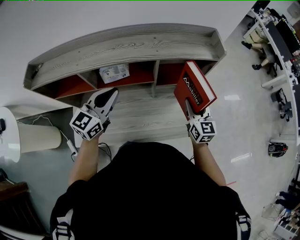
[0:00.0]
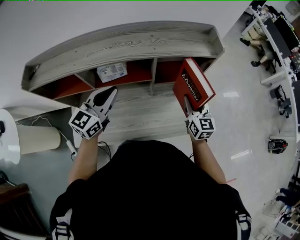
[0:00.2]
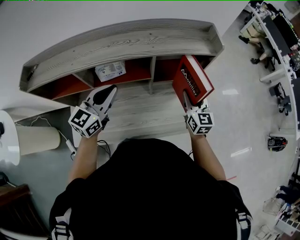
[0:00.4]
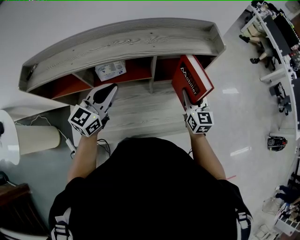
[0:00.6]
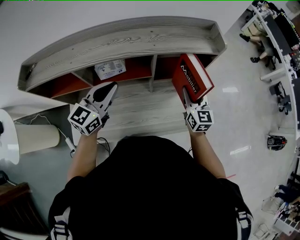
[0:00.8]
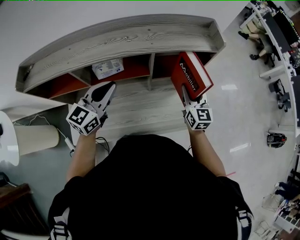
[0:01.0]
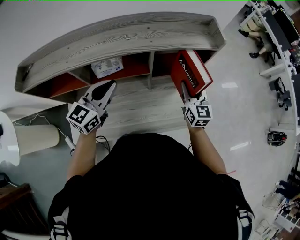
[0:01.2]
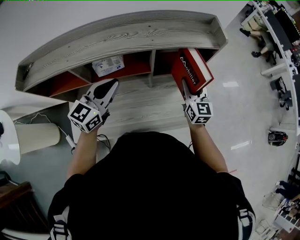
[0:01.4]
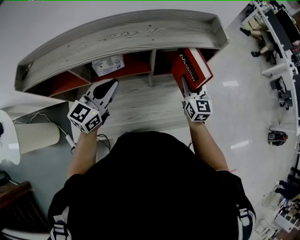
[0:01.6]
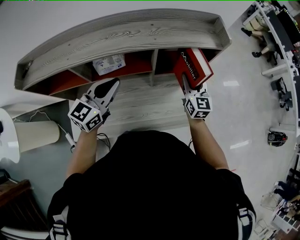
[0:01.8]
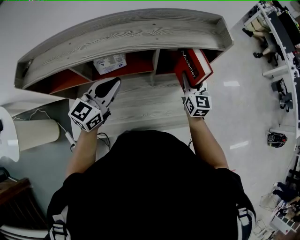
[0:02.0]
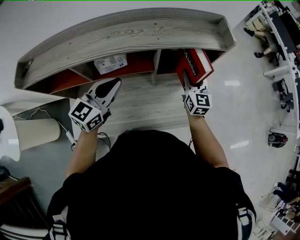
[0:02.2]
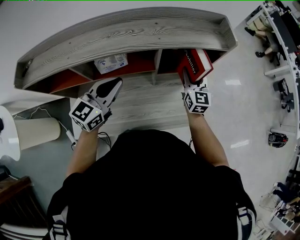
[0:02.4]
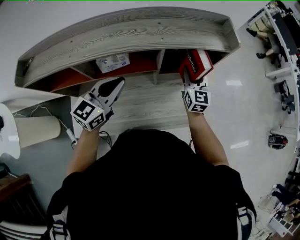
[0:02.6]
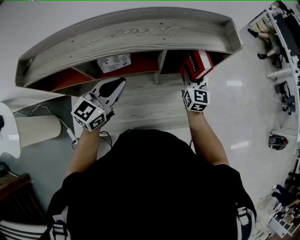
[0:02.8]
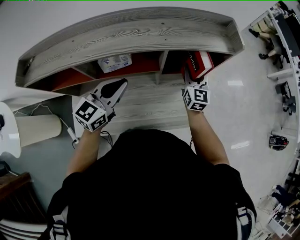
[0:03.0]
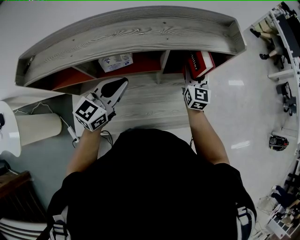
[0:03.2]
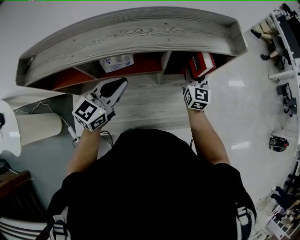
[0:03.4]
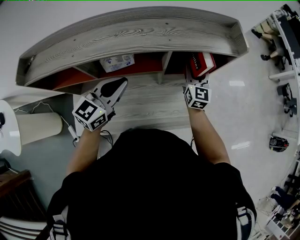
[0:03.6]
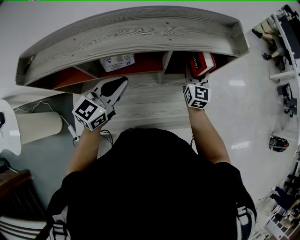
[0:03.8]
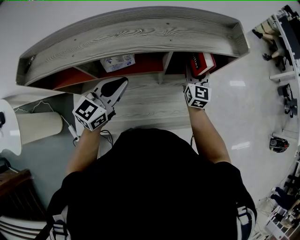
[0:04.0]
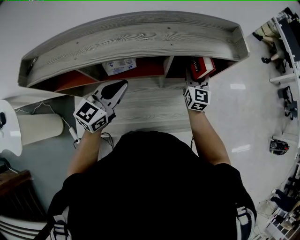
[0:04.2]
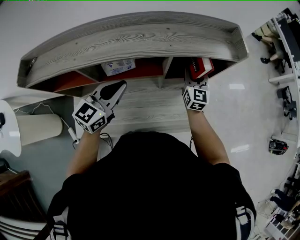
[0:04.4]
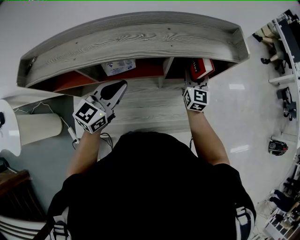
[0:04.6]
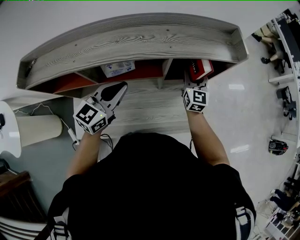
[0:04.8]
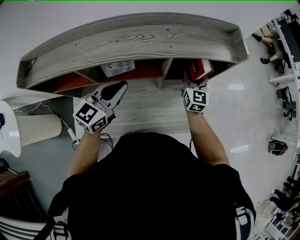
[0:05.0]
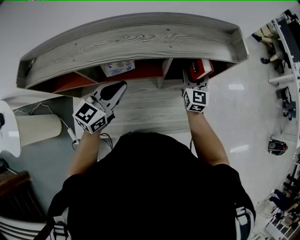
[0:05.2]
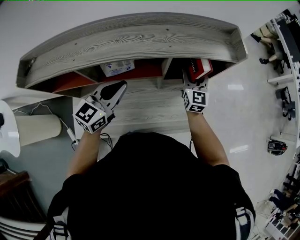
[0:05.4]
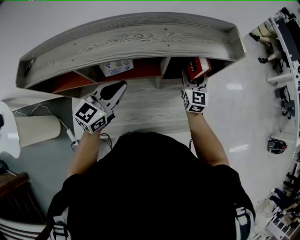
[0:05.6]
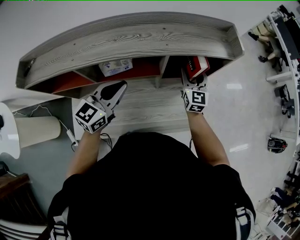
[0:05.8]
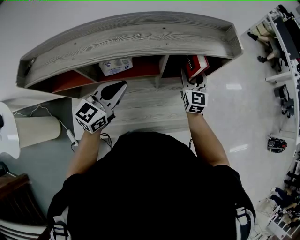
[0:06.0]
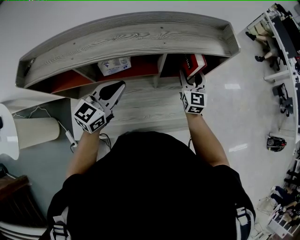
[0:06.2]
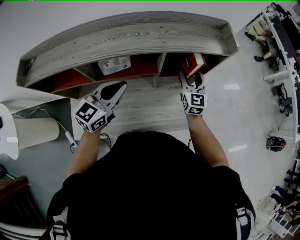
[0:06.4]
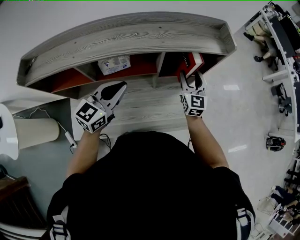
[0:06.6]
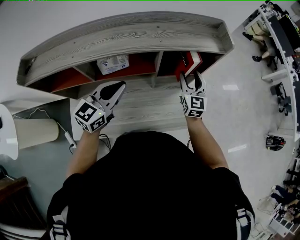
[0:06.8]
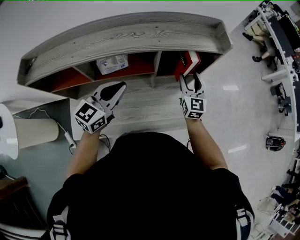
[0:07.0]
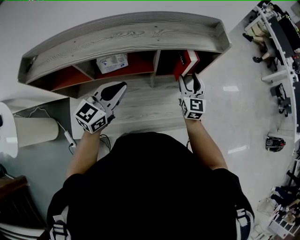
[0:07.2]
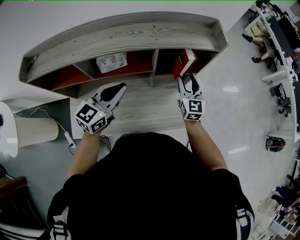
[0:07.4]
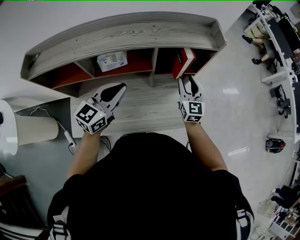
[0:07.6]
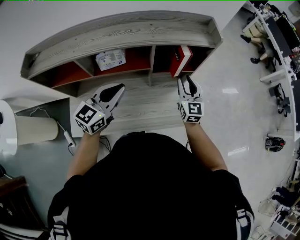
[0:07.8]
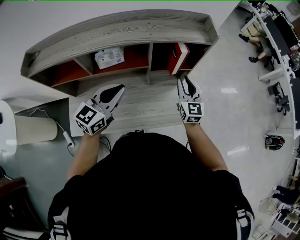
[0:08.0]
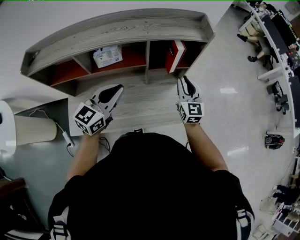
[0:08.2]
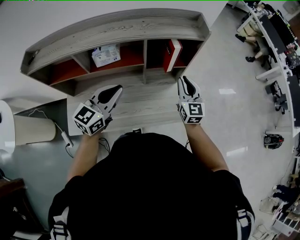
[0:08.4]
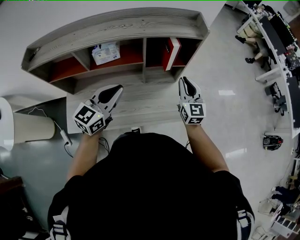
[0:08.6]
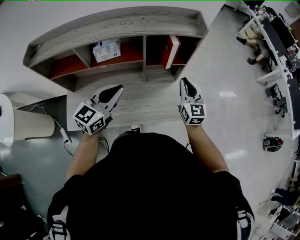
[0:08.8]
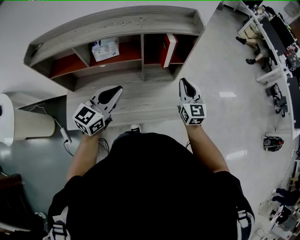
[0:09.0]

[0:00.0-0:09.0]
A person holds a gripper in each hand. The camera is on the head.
0:00.0 to 0:01.6: The right gripper heads forward, covering some 5 cm.
0:01.6 to 0:03.0: The right gripper goes roughly 5 cm forward.
0:03.0 to 0:06.0: The grippers move only a little.
0:06.0 to 0:07.6: The right gripper travels backward by approximately 5 cm. Meanwhile the left gripper moves about 5 cm.
0:07.6 to 0:09.0: The grippers both shift backward and to the right by about 10 cm. The right gripper closes up.

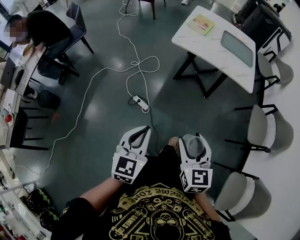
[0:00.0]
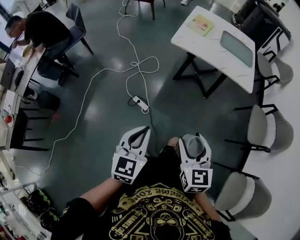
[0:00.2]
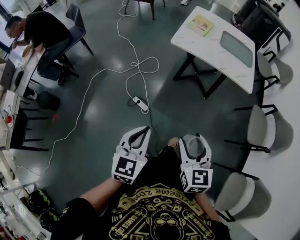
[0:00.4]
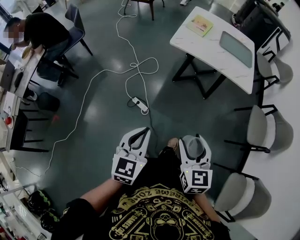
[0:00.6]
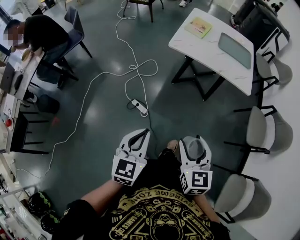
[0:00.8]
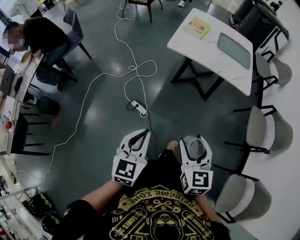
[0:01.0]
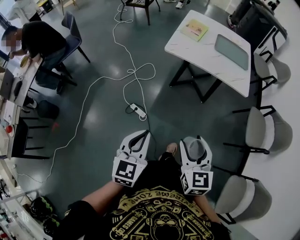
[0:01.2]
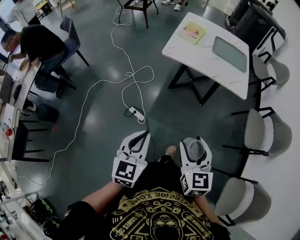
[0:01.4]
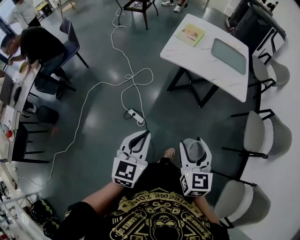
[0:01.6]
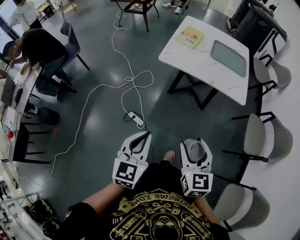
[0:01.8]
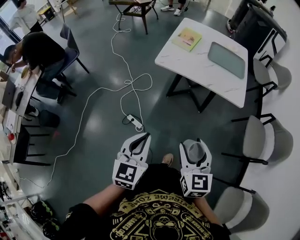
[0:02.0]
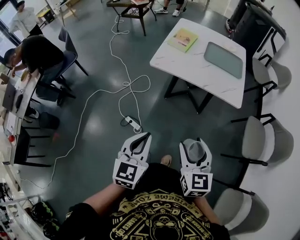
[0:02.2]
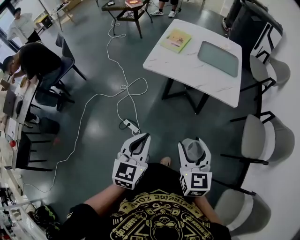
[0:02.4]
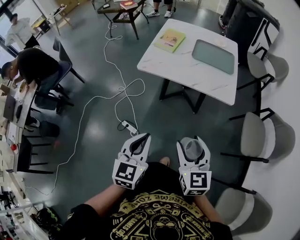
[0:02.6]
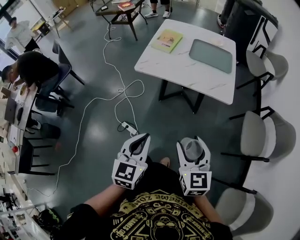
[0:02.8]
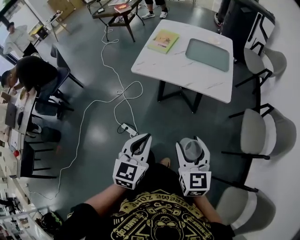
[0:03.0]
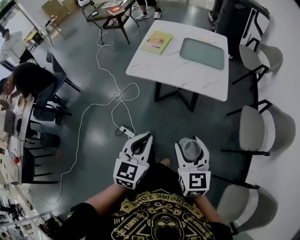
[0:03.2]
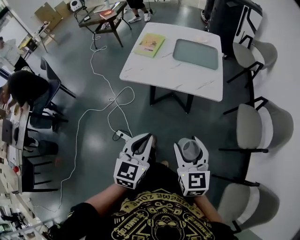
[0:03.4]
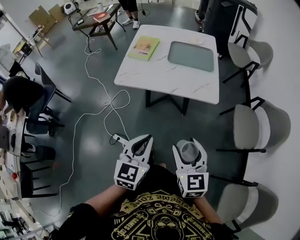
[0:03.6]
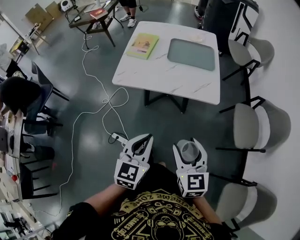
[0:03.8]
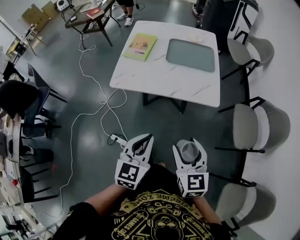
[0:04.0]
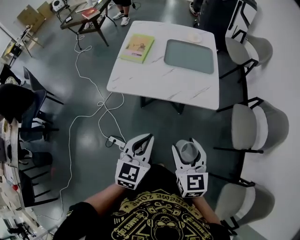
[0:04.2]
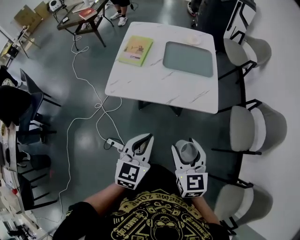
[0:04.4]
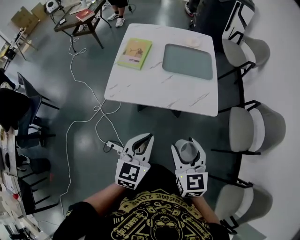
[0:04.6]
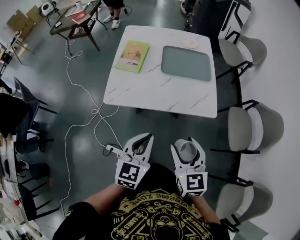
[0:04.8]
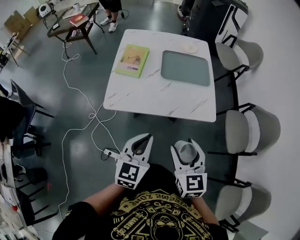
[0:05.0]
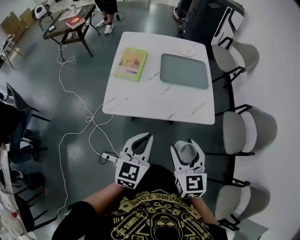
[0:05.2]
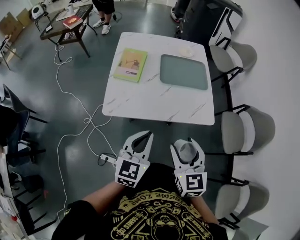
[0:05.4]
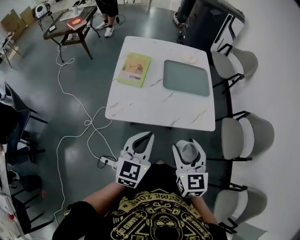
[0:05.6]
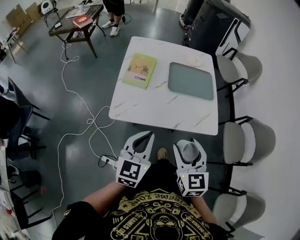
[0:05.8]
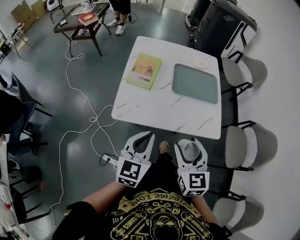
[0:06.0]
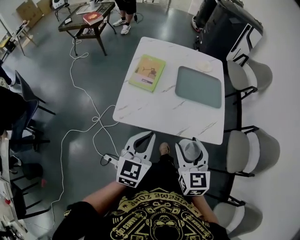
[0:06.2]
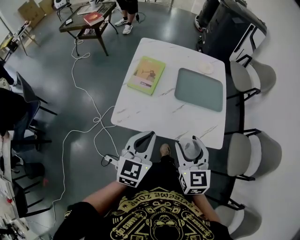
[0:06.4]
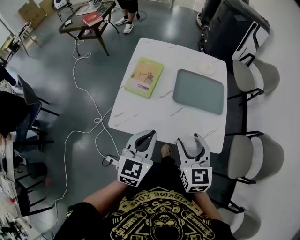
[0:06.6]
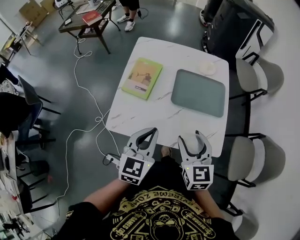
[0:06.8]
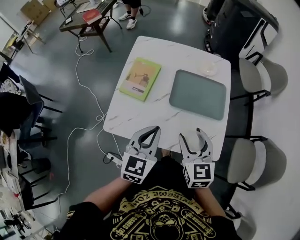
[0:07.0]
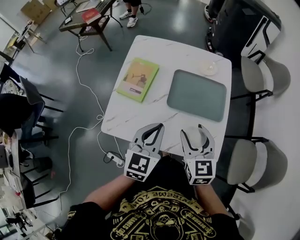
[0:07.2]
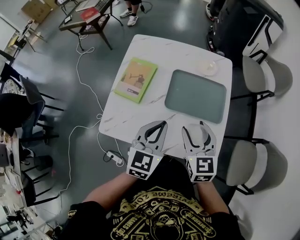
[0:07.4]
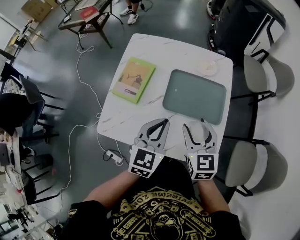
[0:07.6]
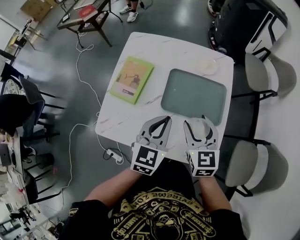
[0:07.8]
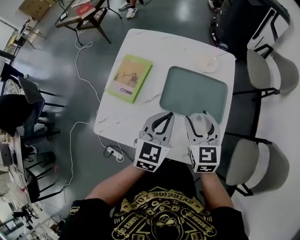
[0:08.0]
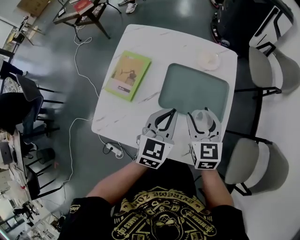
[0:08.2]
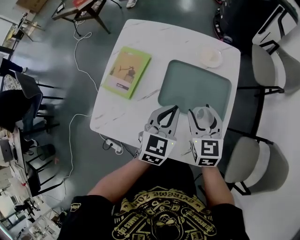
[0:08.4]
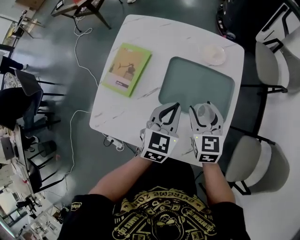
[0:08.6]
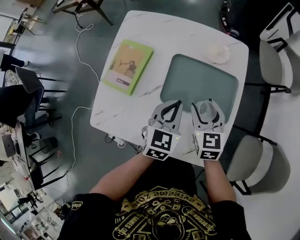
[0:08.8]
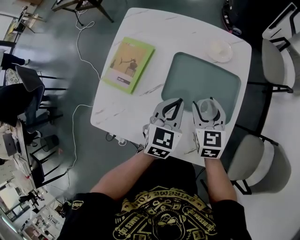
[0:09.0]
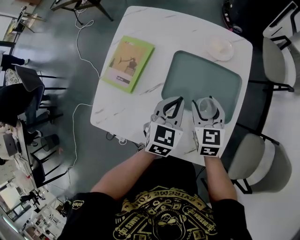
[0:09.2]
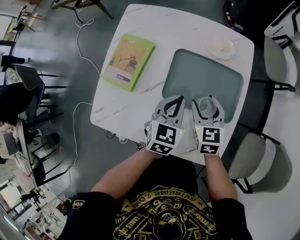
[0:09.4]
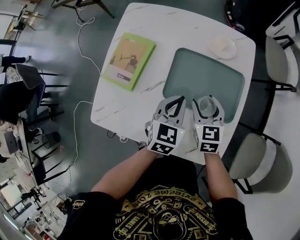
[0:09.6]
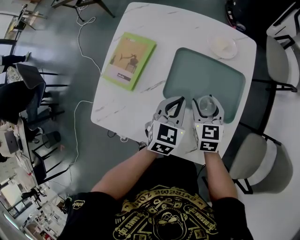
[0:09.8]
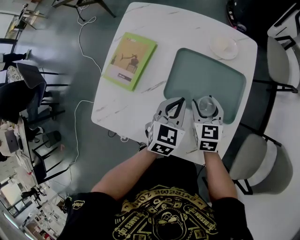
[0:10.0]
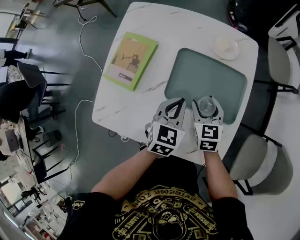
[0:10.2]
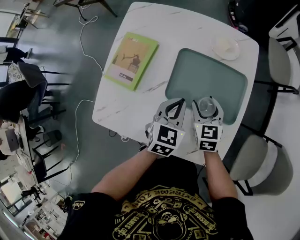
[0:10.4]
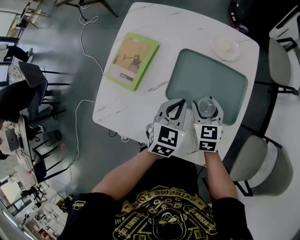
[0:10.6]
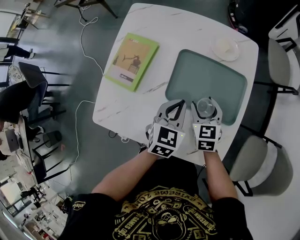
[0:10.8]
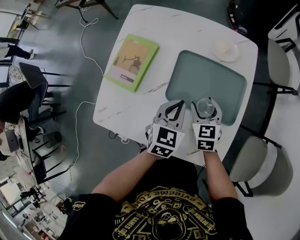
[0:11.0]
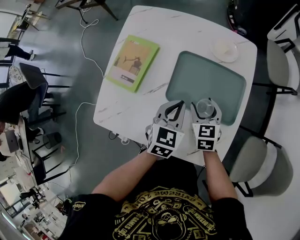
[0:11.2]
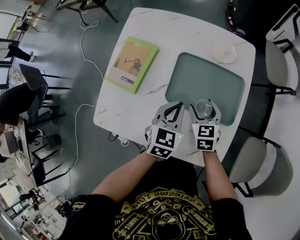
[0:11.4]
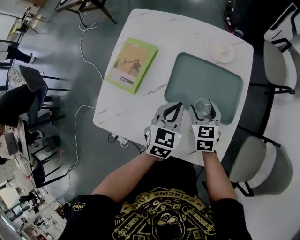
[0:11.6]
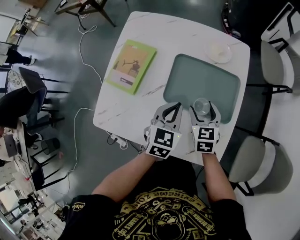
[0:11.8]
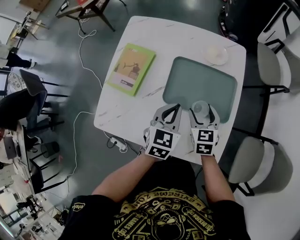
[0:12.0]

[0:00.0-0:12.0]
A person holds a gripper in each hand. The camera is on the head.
0:00.0 to 0:01.6: The grippers both shift forward by some 5 cm.
0:01.6 to 0:03.0: The two grippers go about 20 cm to the right and forward.
0:03.0 to 0:04.4: Both grippers move forward, some 15 cm.
0:04.4 to 0:06.0: Both grippers move forward and to the left, approximately 15 cm.
0:06.0 to 0:07.6: Both grippers travel together forward and to the right, about 25 cm.
0:07.6 to 0:09.0: The two grippers go approximately 15 cm downward and forward.
0:09.0 to 0:10.4: The right gripper is displaced downward by about 5 cm.
0:10.4 to 0:12.0: The grippers move only a little.

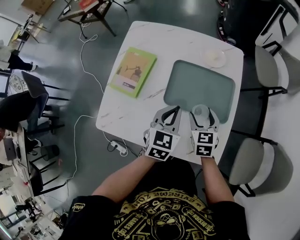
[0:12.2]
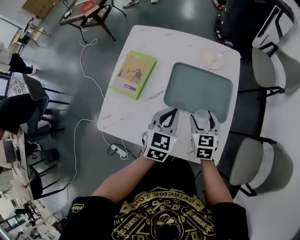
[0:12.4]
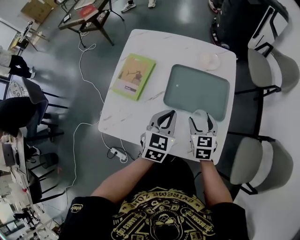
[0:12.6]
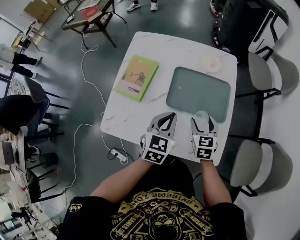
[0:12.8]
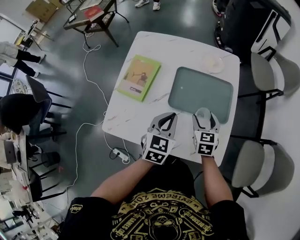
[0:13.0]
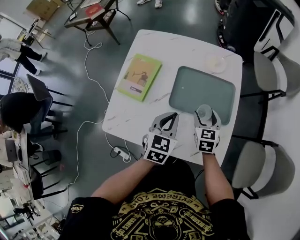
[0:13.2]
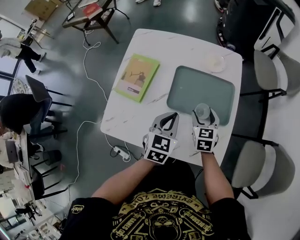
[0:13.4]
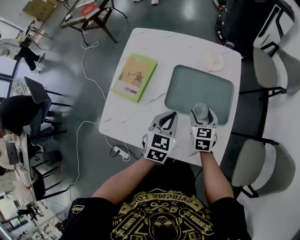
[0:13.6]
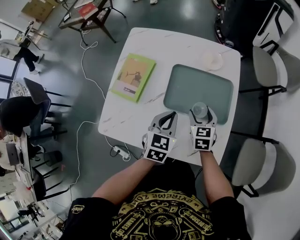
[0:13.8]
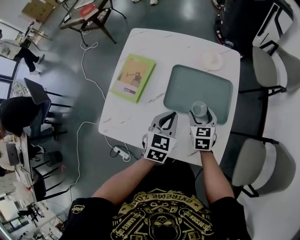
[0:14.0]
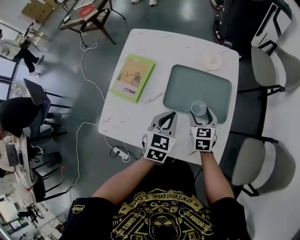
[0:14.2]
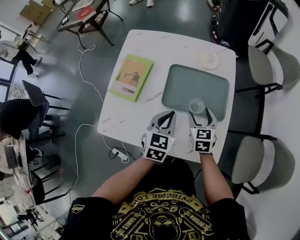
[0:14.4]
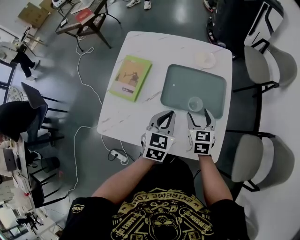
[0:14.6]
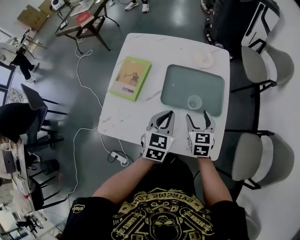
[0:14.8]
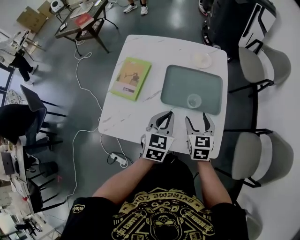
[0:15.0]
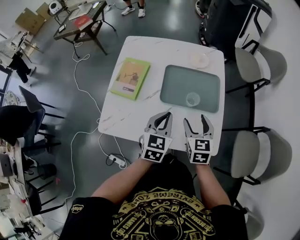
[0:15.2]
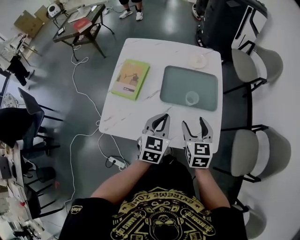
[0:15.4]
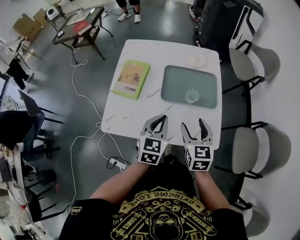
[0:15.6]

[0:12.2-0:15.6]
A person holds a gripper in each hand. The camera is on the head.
0:12.2 to 0:13.8: The grippers make only small movements.
0:13.8 to 0:15.6: The left gripper goes roughly 10 cm backward and upward. The right gripper goes roughly 20 cm backward and upward.
